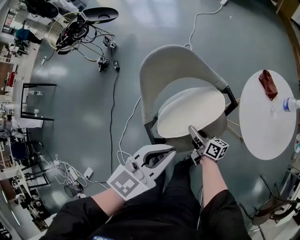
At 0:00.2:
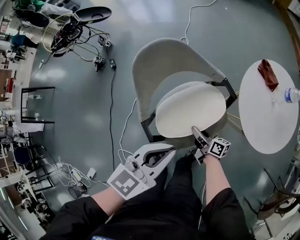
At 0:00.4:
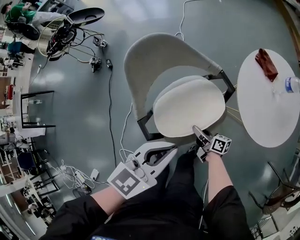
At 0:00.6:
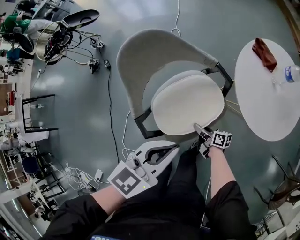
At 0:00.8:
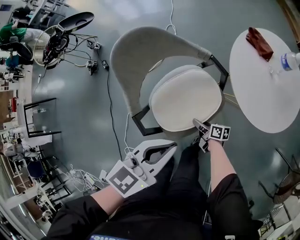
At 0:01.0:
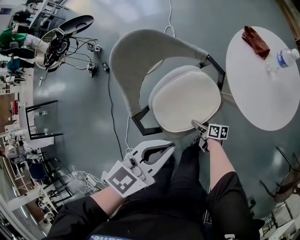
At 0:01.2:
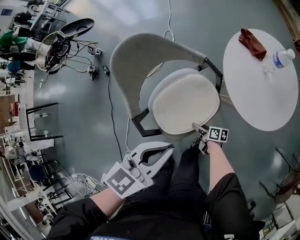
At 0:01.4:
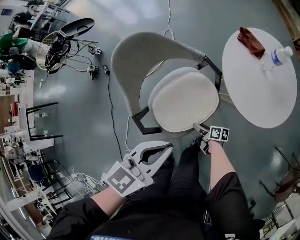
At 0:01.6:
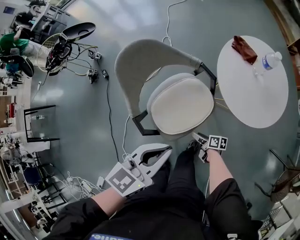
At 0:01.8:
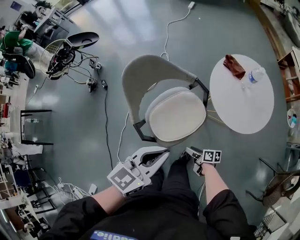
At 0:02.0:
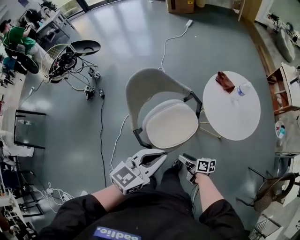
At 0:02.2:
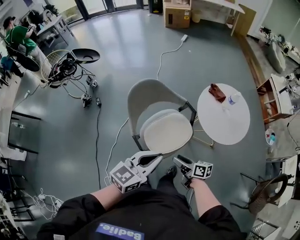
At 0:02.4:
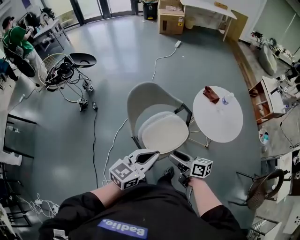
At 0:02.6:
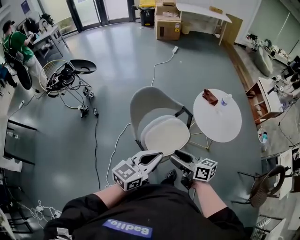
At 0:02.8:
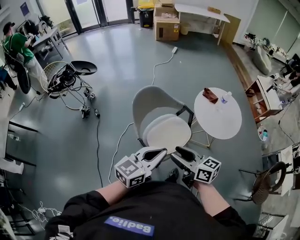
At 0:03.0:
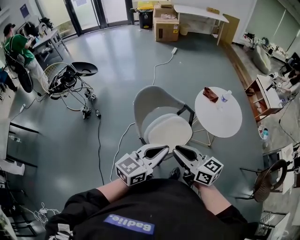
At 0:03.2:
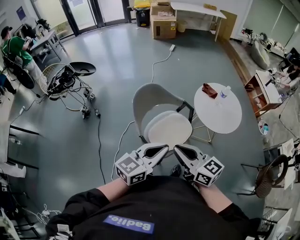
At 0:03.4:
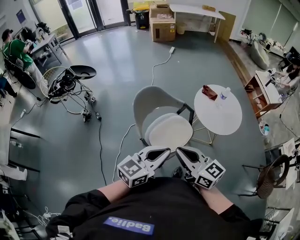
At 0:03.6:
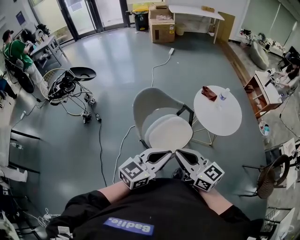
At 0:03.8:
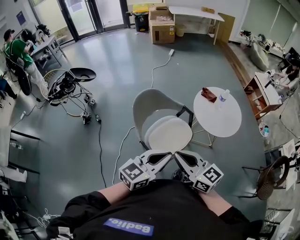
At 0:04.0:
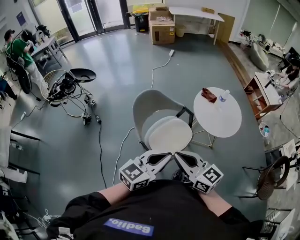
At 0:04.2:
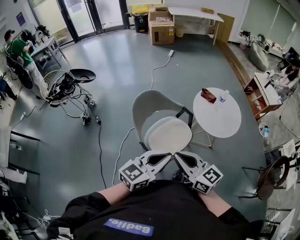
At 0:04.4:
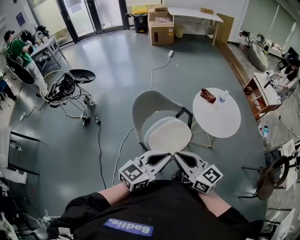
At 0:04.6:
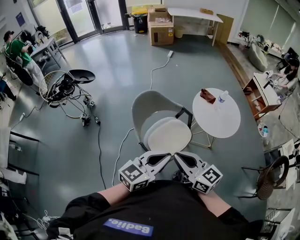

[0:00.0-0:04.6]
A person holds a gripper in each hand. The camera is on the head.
0:00.0 to 0:01.6: The right gripper heads downward, backward and to the right, covering approximately 25 cm, turns by roughly 30 degrees, and opens its fingers; the left gripper moves to the right and backward, approximately 10 cm.
0:01.6 to 0:03.0: The left gripper goes some 20 cm upward, to the left and backward; the right gripper moves upward, some 60 cm, rotates around the line of its fingers by about 50 degrees, counterclockwise from behind, and closes its fingers.
0:03.0 to 0:04.6: The grippers stay close to where they were, moving slightly.

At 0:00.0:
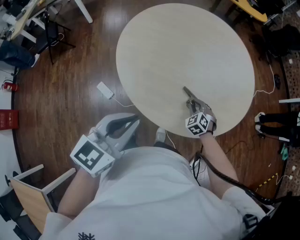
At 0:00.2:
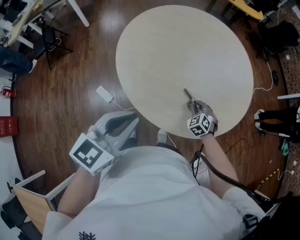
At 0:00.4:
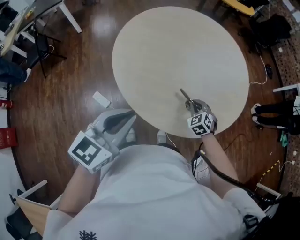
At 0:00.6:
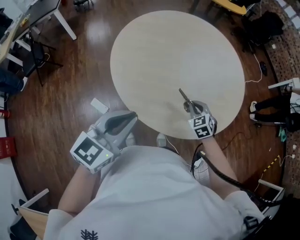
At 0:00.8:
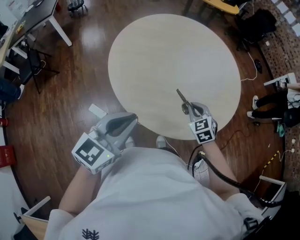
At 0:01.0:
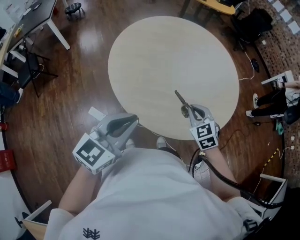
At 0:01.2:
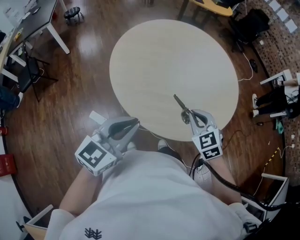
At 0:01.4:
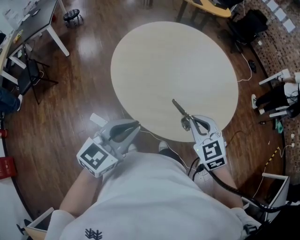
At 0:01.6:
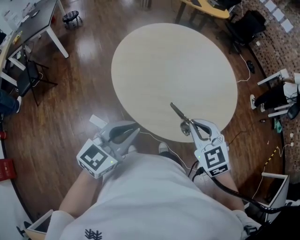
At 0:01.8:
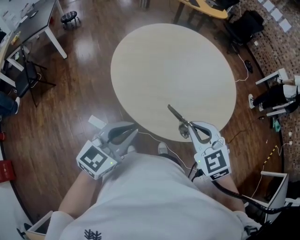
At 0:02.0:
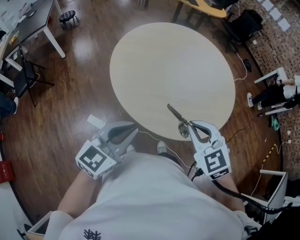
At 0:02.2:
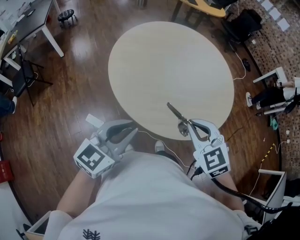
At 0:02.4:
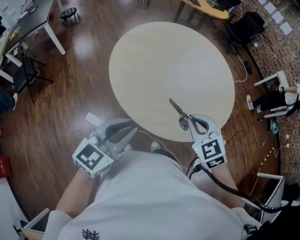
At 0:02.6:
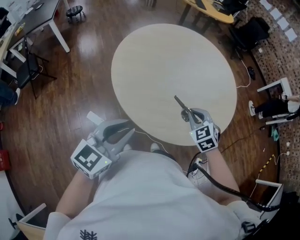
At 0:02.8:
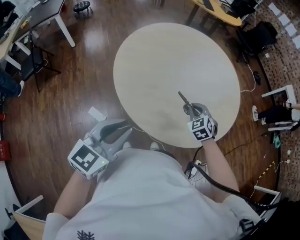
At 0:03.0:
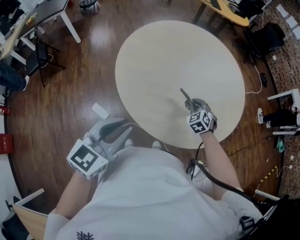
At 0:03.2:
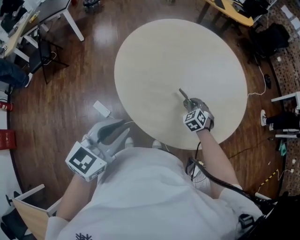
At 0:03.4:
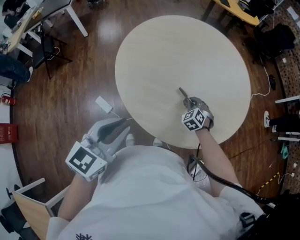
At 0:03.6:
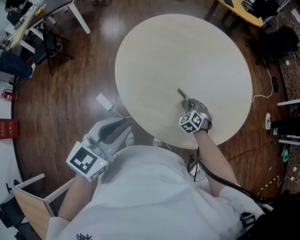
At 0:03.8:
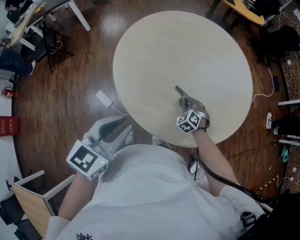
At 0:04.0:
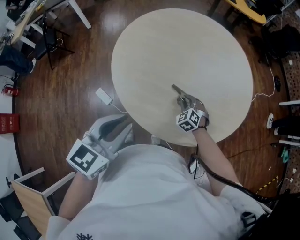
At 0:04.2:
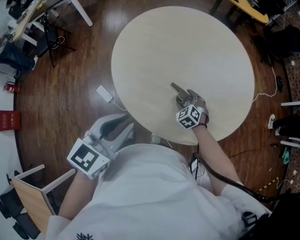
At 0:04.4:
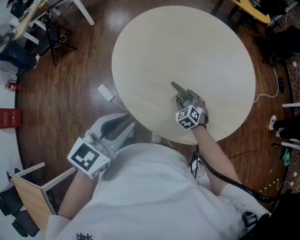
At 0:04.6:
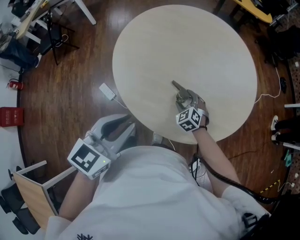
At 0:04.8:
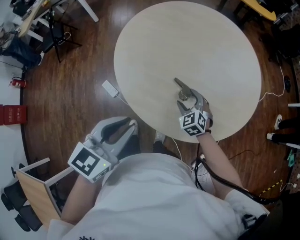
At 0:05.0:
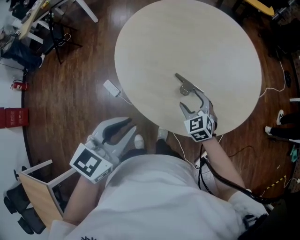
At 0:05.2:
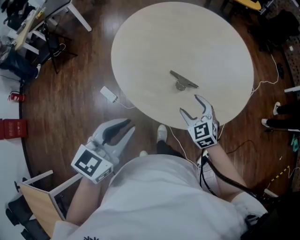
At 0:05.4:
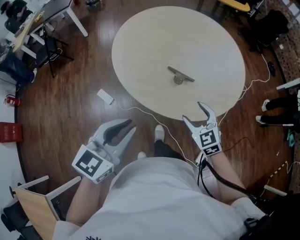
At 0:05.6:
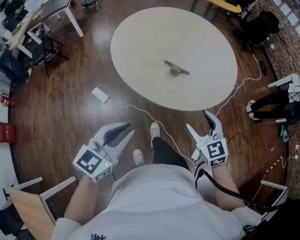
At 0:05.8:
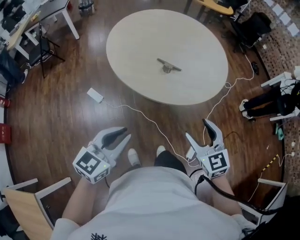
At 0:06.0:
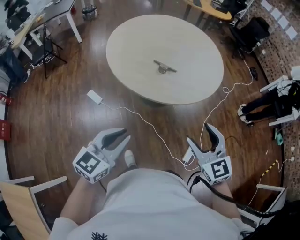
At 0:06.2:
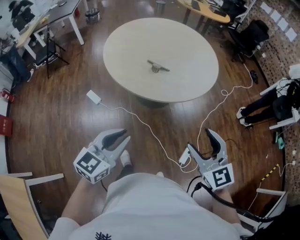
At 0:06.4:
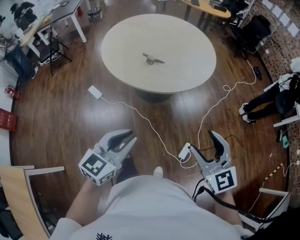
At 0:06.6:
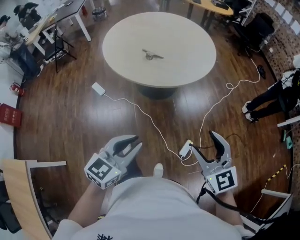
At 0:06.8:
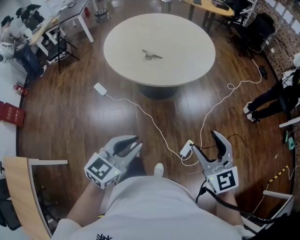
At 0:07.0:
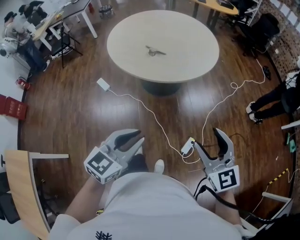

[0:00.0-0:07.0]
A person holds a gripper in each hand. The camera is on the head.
0:00.0 to 0:01.4: The left gripper travels to the left by about 5 cm, while the right gripper shifts some 25 cm upward and backward, and changes its angle by approximately 20 degrees.
0:01.4 to 0:02.8: The right gripper goes some 20 cm downward and forward.
0:02.8 to 0:04.2: The left gripper travels to the right by about 5 cm. The right gripper moves downward, roughly 10 cm, and opens up.
0:04.2 to 0:05.6: The right gripper heads backward and upward, covering some 30 cm, and turns by approximately 30 degrees. The left gripper travels backward by about 15 cm.
0:05.6 to 0:07.0: The right gripper heads to the right, backward and upward, covering some 30 cm; the left gripper travels to the right and backward by some 30 cm.

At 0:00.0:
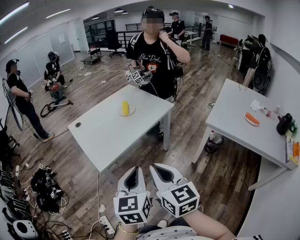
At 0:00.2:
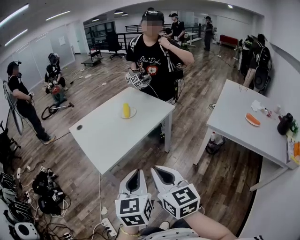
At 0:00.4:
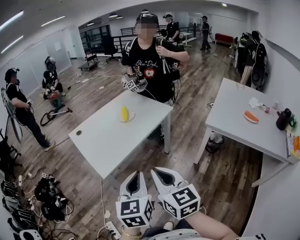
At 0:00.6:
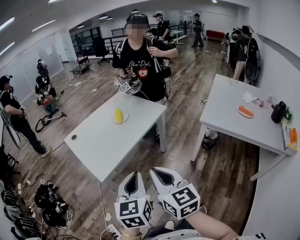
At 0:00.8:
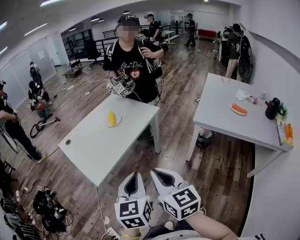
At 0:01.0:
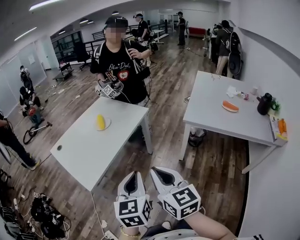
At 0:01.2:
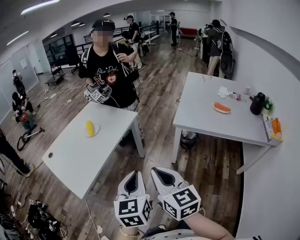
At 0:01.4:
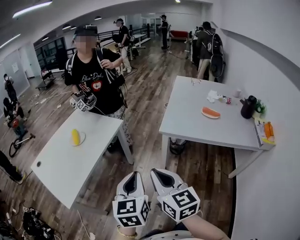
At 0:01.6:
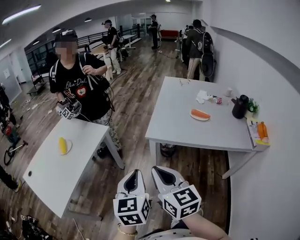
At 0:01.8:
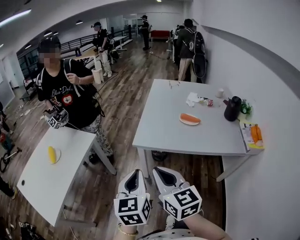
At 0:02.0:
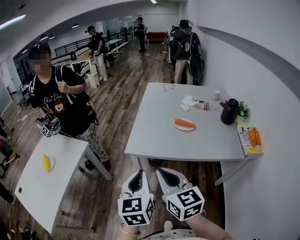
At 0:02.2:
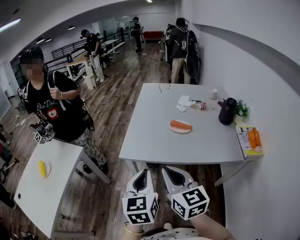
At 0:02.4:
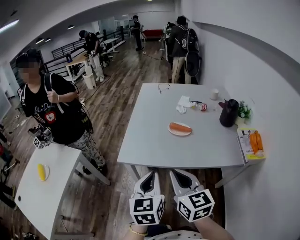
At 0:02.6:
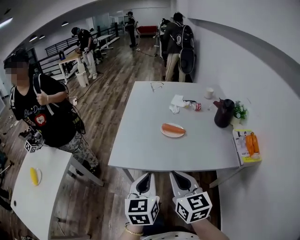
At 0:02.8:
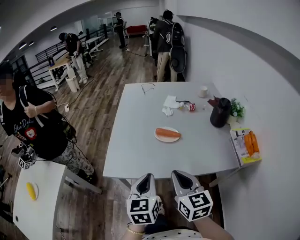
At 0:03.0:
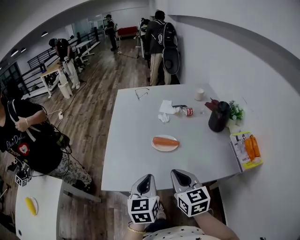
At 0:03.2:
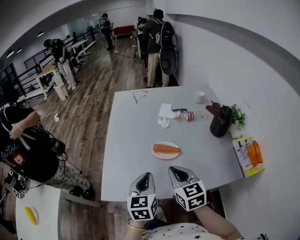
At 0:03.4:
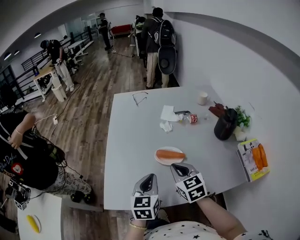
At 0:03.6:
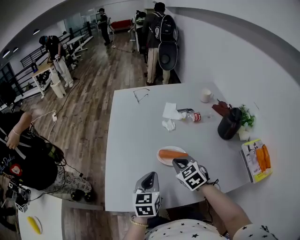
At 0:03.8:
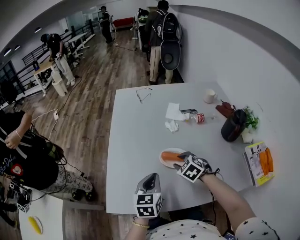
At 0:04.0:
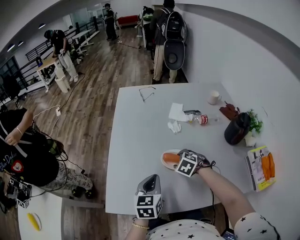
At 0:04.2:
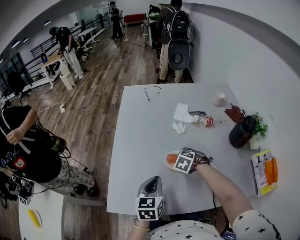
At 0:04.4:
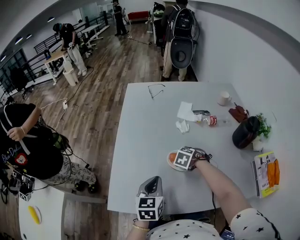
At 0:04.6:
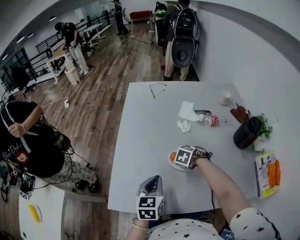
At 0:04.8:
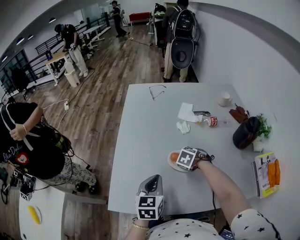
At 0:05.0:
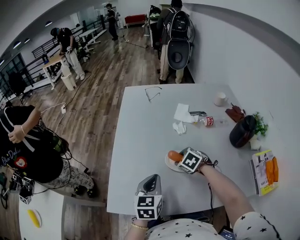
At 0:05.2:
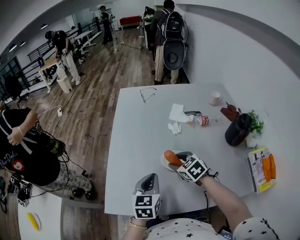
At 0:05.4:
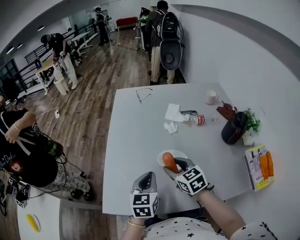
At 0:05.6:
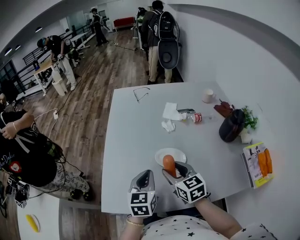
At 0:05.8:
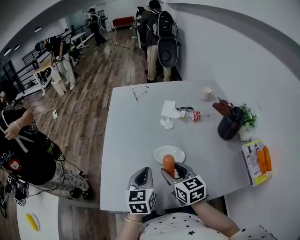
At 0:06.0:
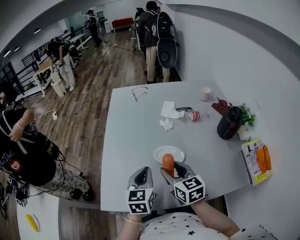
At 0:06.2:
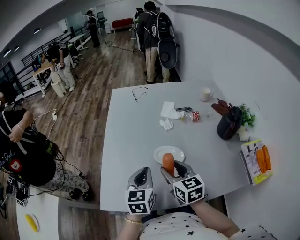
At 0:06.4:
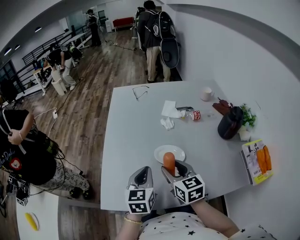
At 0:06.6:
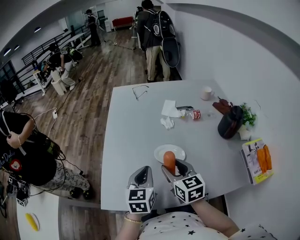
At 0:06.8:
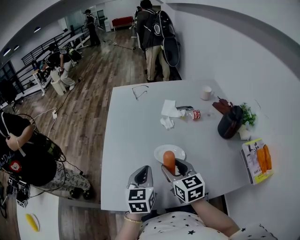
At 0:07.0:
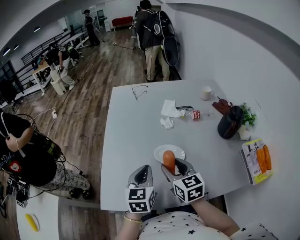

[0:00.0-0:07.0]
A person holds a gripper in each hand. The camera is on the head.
0:00.0 to 0:01.4: The grippers both shift to the right by about 20 cm. The right gripper changes its angle by roughly 20 degrees; the left gripper rotates some 20 degrees.
0:01.4 to 0:02.8: The pair of grippers is taken to the right and forward, roughly 50 cm. The left gripper swivels about 20 degrees; the right gripper swivels roughly 30 degrees.
0:02.8 to 0:04.2: The right gripper heads forward and downward, covering about 40 cm, points its fingers approximately 60 degrees further downward, and opens its fingers. Meanwhile the left gripper goes approximately 25 cm forward.
0:04.2 to 0:05.6: The right gripper shifts about 15 cm upward, and tips its fingers upward by about 50 degrees.
0:05.6 to 0:07.0: The grippers make only small movements.

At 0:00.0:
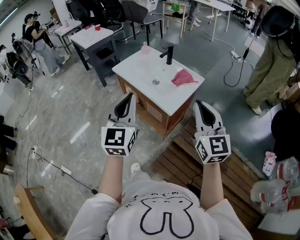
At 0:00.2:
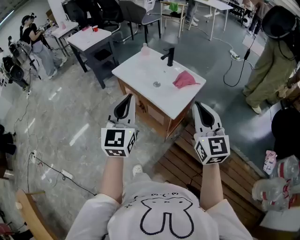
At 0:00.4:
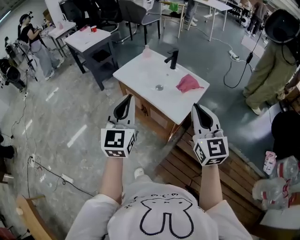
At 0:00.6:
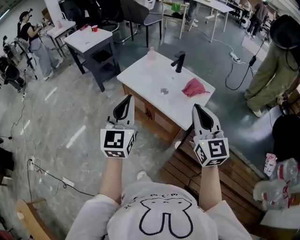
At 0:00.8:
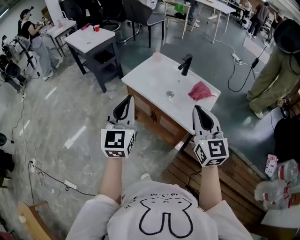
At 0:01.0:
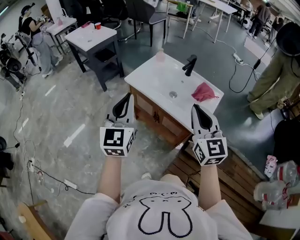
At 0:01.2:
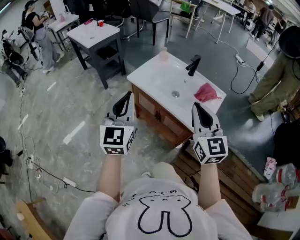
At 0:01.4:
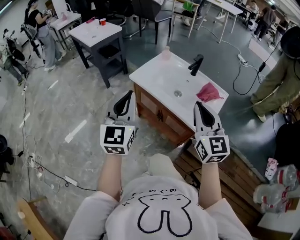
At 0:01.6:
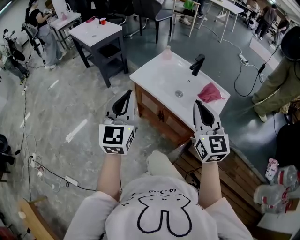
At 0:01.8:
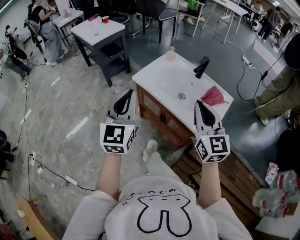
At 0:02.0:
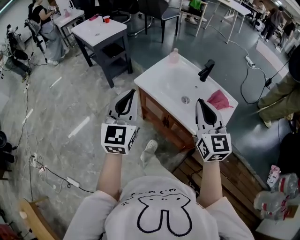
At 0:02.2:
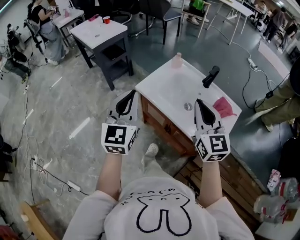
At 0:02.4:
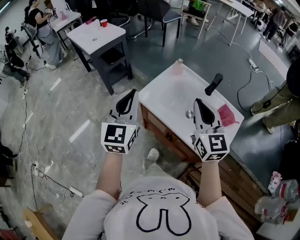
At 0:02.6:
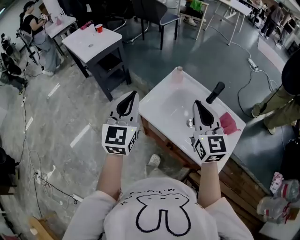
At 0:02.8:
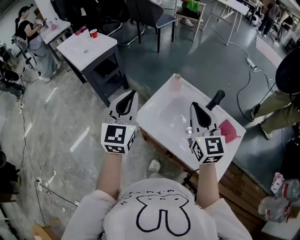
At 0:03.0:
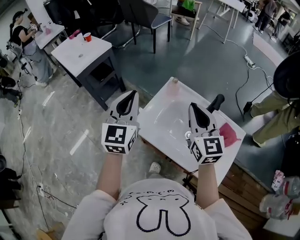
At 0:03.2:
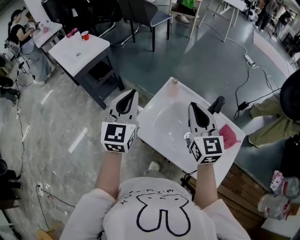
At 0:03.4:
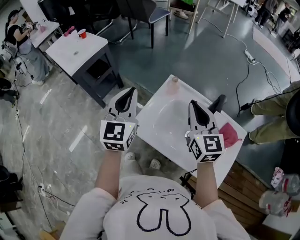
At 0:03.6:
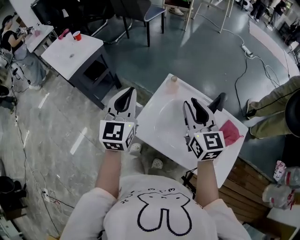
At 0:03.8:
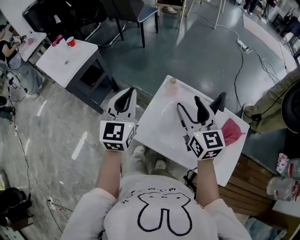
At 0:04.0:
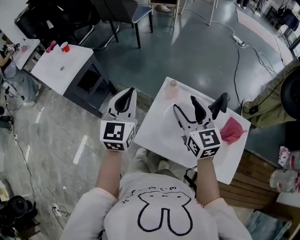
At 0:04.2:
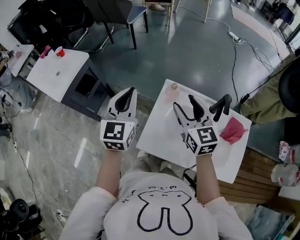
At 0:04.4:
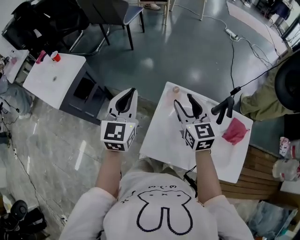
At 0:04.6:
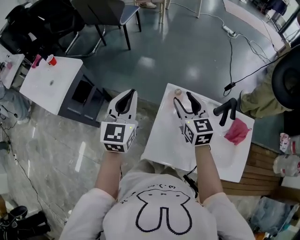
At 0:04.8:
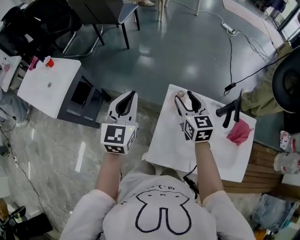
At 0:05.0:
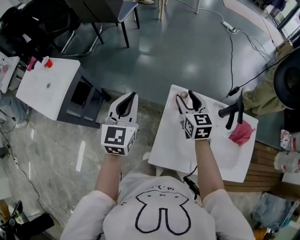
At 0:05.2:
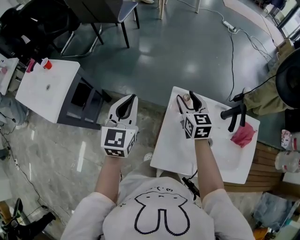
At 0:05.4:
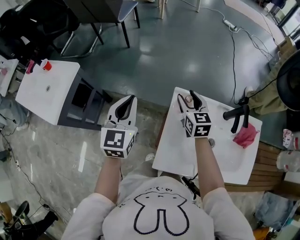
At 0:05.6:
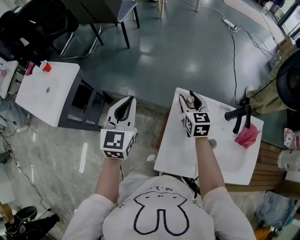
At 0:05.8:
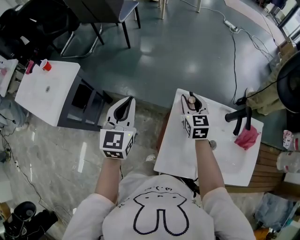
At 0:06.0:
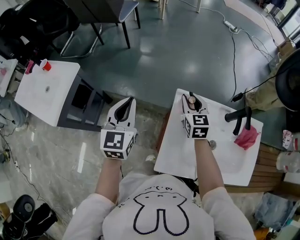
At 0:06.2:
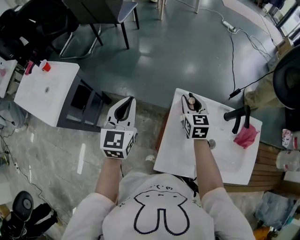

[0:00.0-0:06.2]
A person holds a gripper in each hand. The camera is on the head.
0:00.0 to 0:01.6: Both grippers move to the left and forward, approximately 25 cm.
0:01.6 to 0:03.2: The grippers both shift forward by roughly 40 cm.
0:03.2 to 0:04.6: The left gripper shifts approximately 15 cm forward, while the right gripper moves forward and downward, some 20 cm, and opens up.
0:04.6 to 0:06.2: The left gripper is displaced downward and to the left by roughly 10 cm. Meanwhile the right gripper travels downward and forward by approximately 10 cm, and closes.
